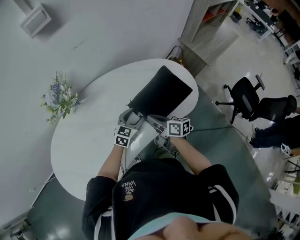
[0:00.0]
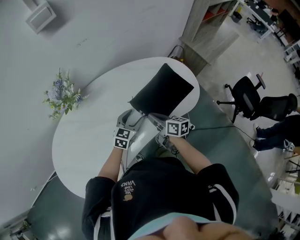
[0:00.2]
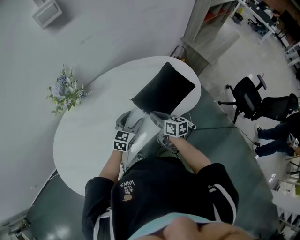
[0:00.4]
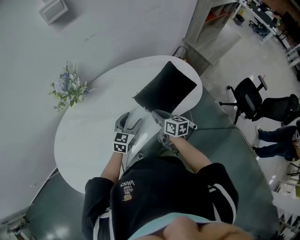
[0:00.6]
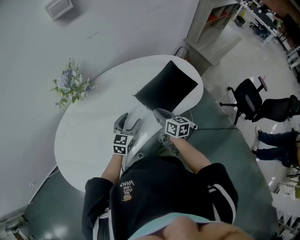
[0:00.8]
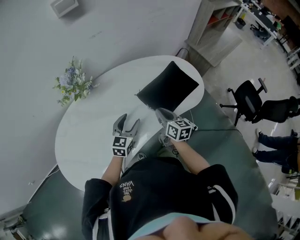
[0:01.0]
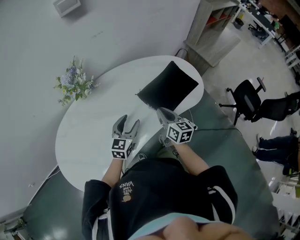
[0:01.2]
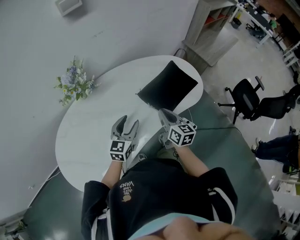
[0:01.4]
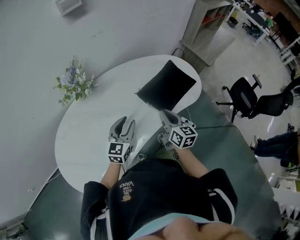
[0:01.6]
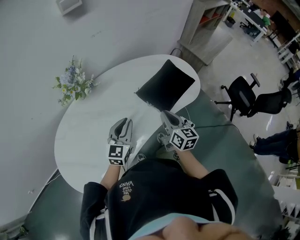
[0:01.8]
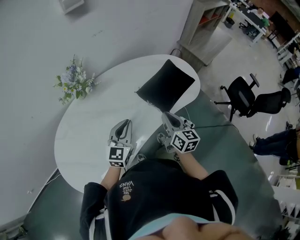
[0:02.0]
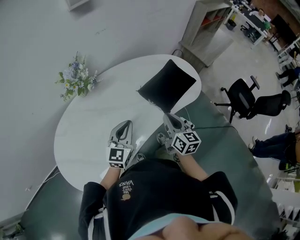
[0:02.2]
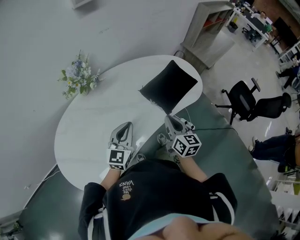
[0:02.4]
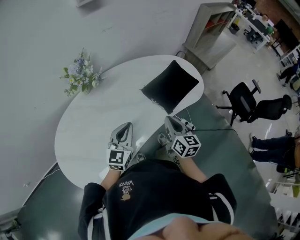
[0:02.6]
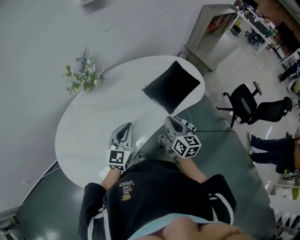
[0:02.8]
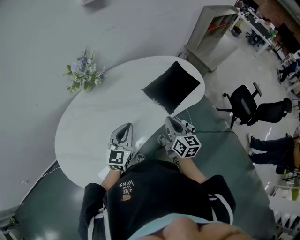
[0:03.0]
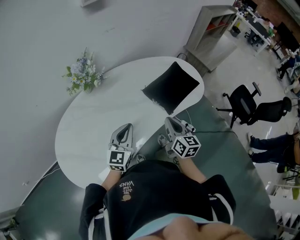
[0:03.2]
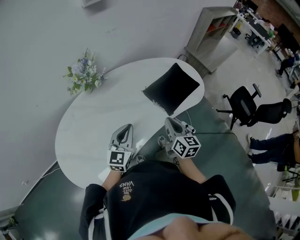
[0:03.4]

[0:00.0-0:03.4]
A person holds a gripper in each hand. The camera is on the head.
0:00.0 to 0:01.6: The left gripper shifts about 20 cm to the left, backward and upward. Meanwhile the right gripper heads backward and upward, covering approximately 10 cm, and turns by some 30 degrees.
0:01.6 to 0:03.4: The grippers both shift backward by approximately 5 cm. The left gripper closes.

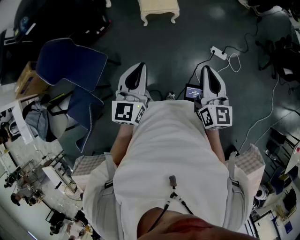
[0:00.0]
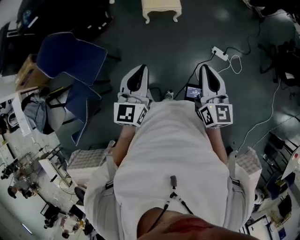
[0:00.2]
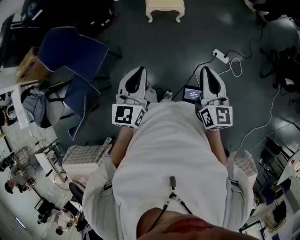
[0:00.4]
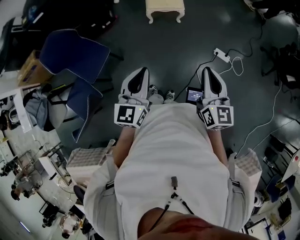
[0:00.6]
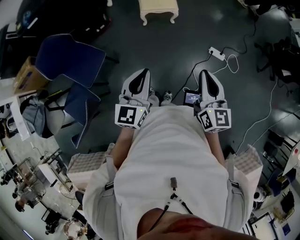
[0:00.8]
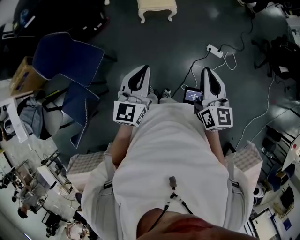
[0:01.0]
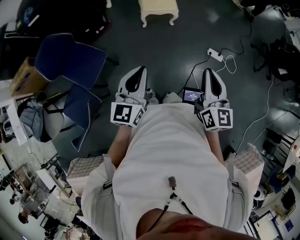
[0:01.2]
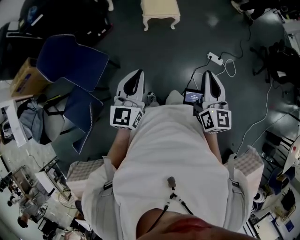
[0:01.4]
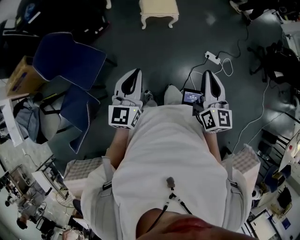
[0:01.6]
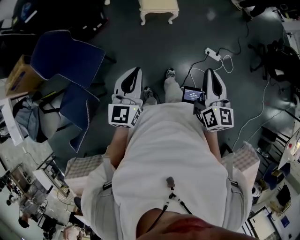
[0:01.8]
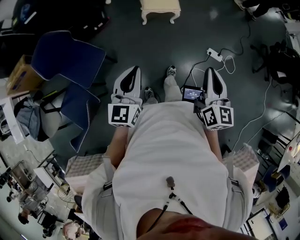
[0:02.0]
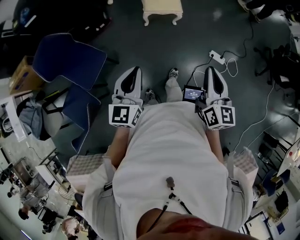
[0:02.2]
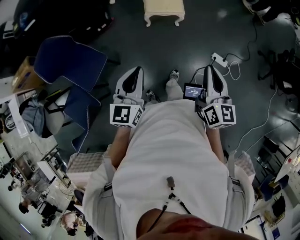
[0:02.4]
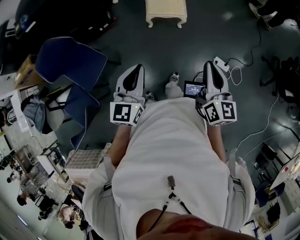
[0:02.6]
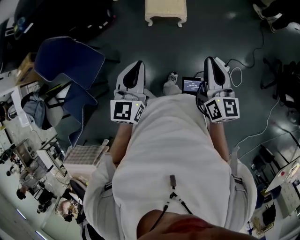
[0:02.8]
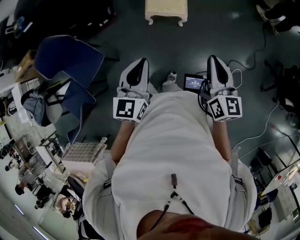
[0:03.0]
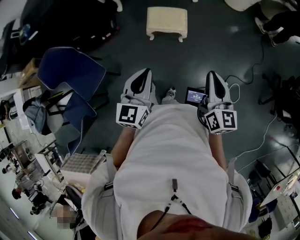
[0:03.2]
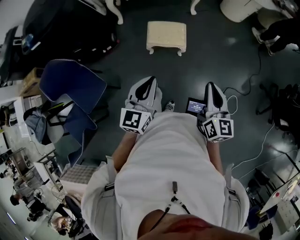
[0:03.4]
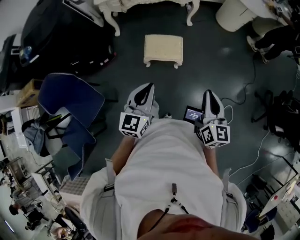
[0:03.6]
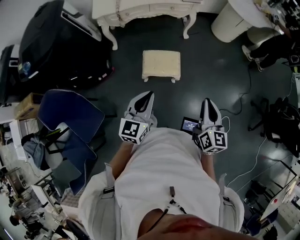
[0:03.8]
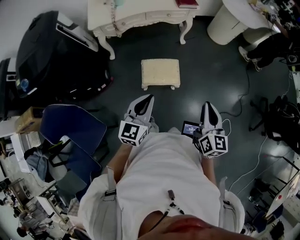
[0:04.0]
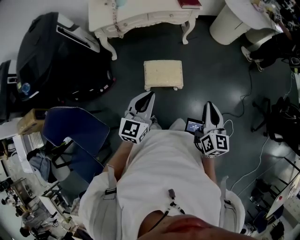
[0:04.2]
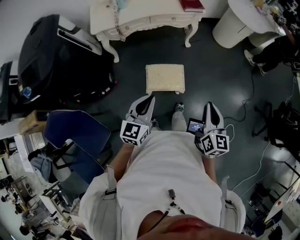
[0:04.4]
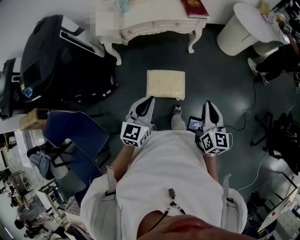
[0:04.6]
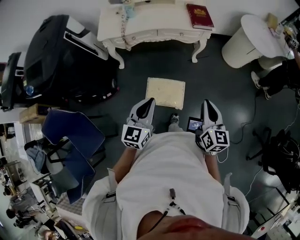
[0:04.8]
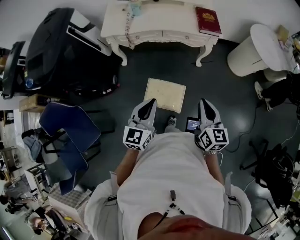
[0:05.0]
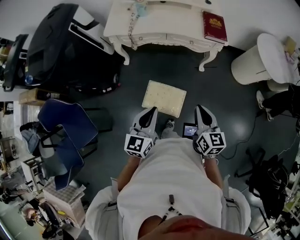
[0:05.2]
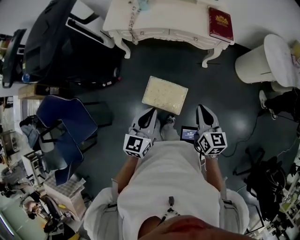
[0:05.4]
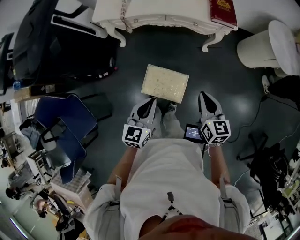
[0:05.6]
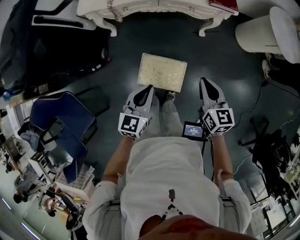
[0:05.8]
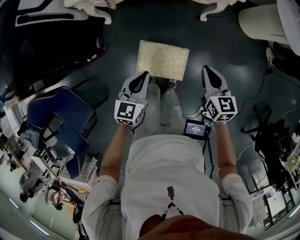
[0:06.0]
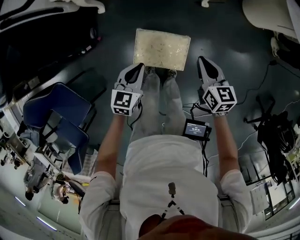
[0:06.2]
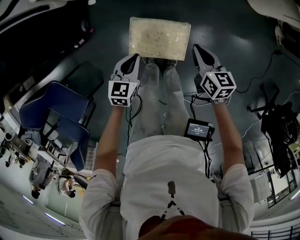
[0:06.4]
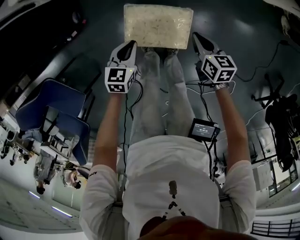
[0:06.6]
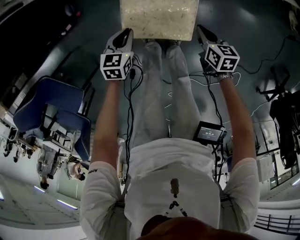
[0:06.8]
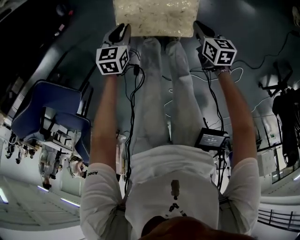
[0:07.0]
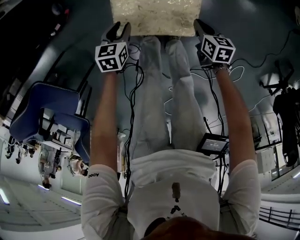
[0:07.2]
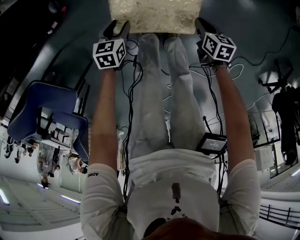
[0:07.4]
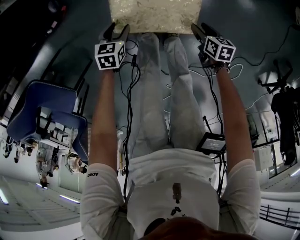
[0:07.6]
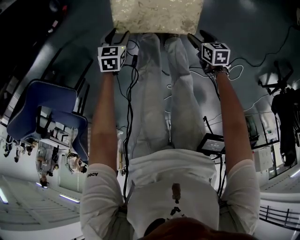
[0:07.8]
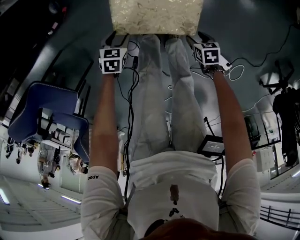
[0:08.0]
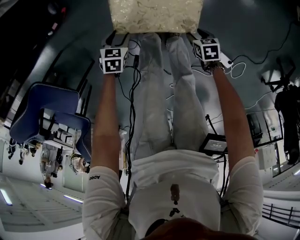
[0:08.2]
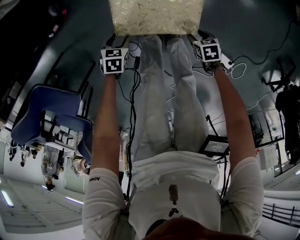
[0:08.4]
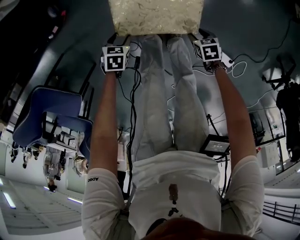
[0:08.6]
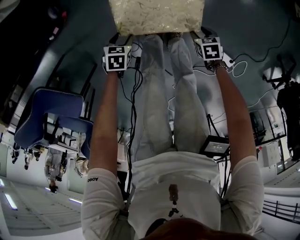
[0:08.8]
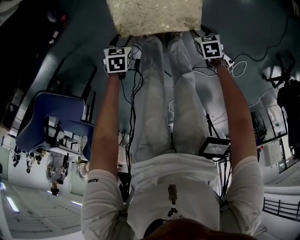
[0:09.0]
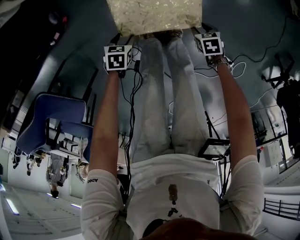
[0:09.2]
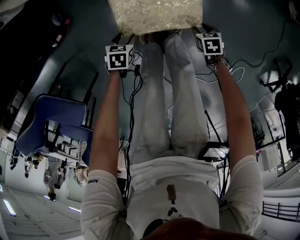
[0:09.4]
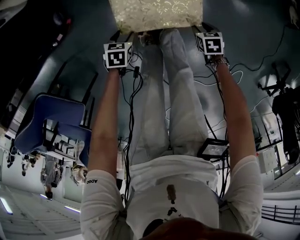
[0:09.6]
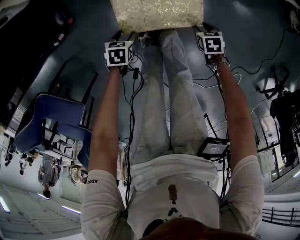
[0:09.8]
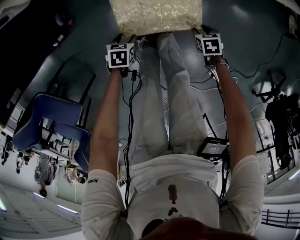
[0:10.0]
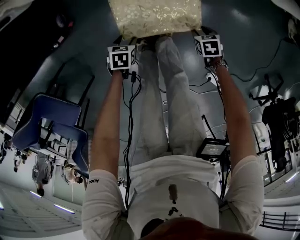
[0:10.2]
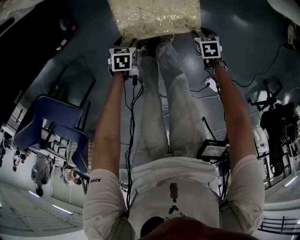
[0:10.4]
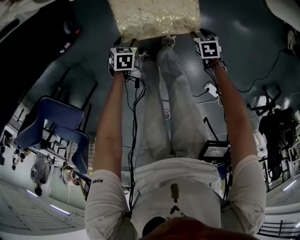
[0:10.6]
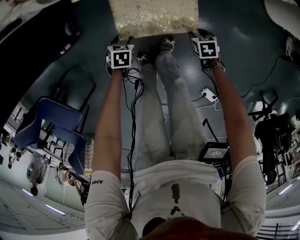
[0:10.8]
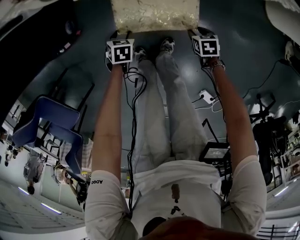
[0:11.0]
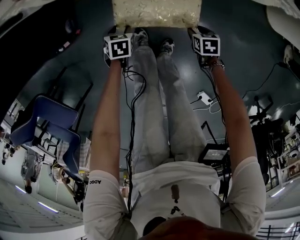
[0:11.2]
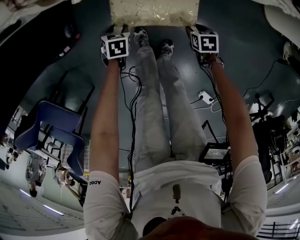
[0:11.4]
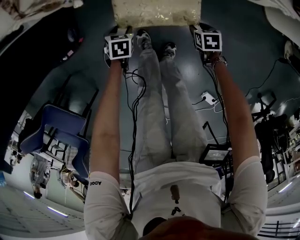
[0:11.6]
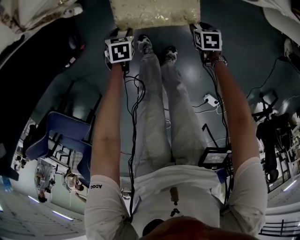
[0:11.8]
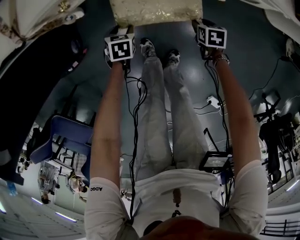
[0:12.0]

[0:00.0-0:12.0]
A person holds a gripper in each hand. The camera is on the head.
0:00.0 to 0:01.6: The right gripper travels backward by roughly 5 cm. Meanwhile the left gripper moves to the left and backward, about 10 cm.
0:01.6 to 0:03.0: The two grippers go some 30 cm forward and to the right.
0:03.0 to 0:04.4: The grippers both shift forward by about 30 cm.
0:04.4 to 0:06.0: The right gripper shifts by roughly 40 cm, and swivels some 30 degrees; the left gripper shifts by roughly 30 cm.
0:06.0 to 0:07.6: Both grippers travel together downward, about 50 cm. The right gripper rotates about 40 degrees, and opens up; the left gripper tilts its fingers some 30 degrees downward, and opens.
0:07.6 to 0:09.0: The right gripper rotates roughly 30 degrees. Meanwhile the left gripper shifts by about 5 cm.
0:09.0 to 0:10.4: The left gripper moves some 10 cm. The right gripper shifts by roughly 20 cm.
0:10.4 to 0:12.0: The right gripper shifts by approximately 25 cm; the left gripper moves roughly 25 cm.

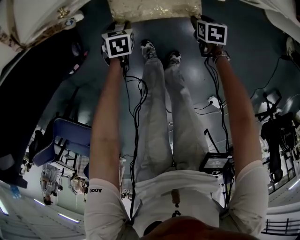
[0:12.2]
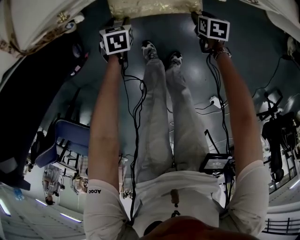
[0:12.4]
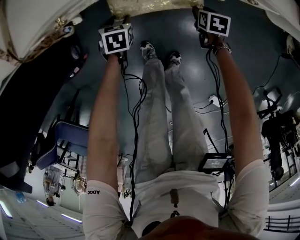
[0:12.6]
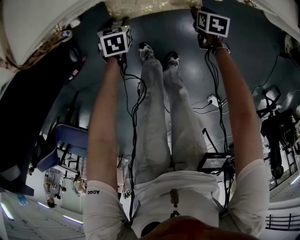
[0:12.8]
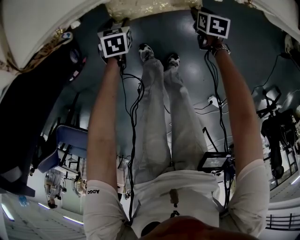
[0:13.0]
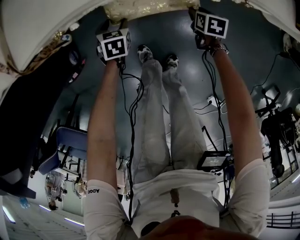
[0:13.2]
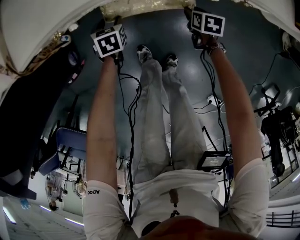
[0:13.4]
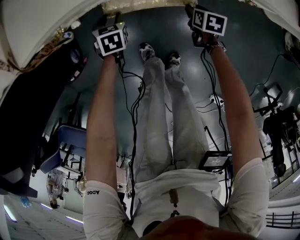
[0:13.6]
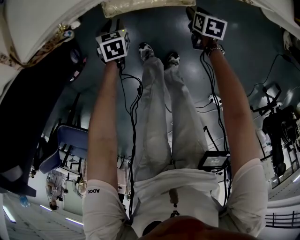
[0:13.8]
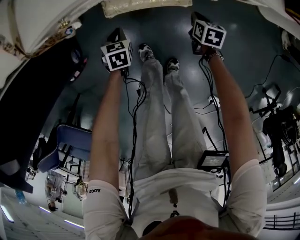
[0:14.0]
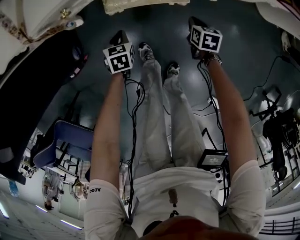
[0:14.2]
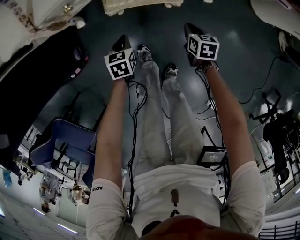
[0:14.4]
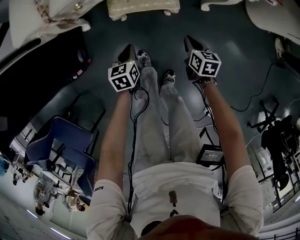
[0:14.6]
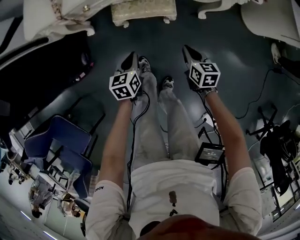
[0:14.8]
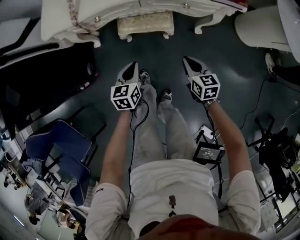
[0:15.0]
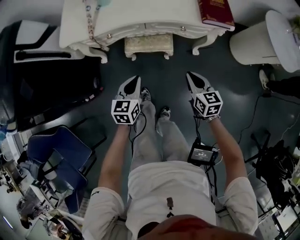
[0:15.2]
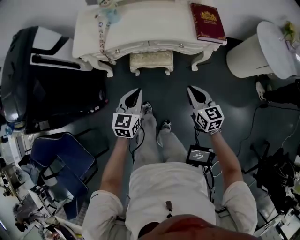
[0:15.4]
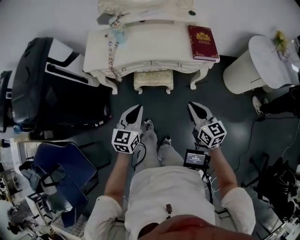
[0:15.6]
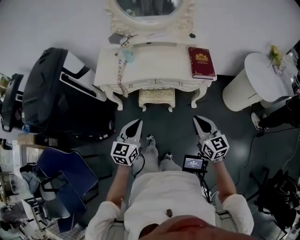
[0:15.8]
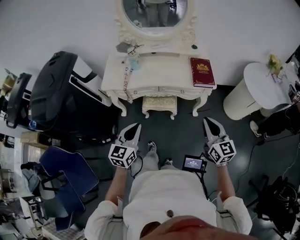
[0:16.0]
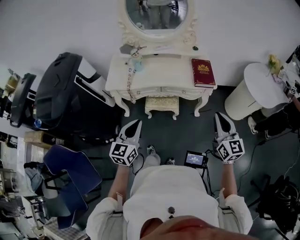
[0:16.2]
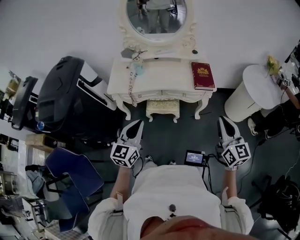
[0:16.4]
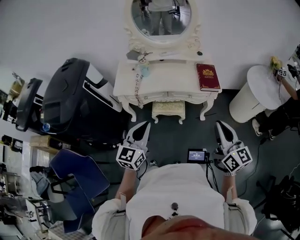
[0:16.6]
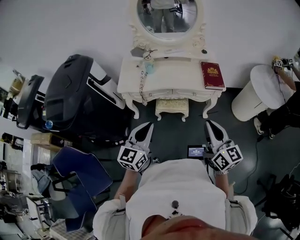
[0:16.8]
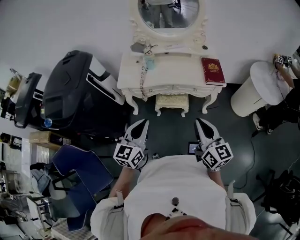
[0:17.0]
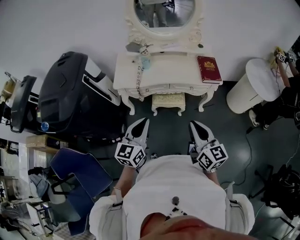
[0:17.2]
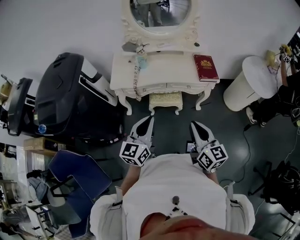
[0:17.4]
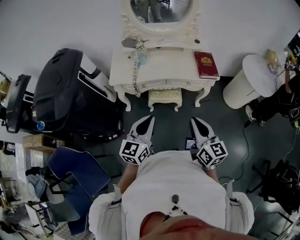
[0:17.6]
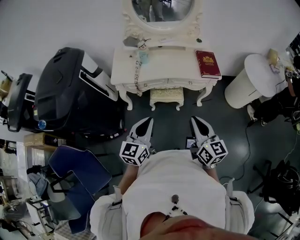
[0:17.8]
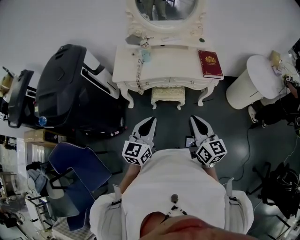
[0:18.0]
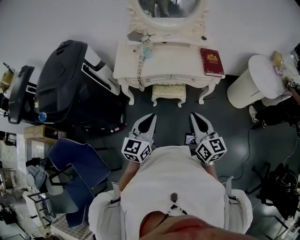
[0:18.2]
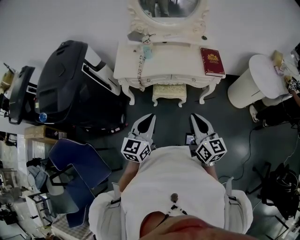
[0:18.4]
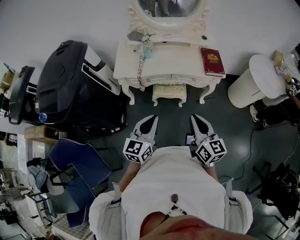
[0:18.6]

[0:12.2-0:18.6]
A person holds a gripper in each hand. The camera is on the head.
0:12.2 to 0:13.8: The right gripper is displaced forward by roughly 5 cm.
0:13.8 to 0:15.4: Both grippers travel together upward and backward, roughly 50 cm. The right gripper points its fingers some 40 degrees further upward, and closes. The left gripper tips its fingers upward by some 40 degrees, and closes.
0:15.4 to 0:17.0: Both grippers travel together upward and backward, about 35 cm. The right gripper turns by about 20 degrees.
0:17.0 to 0:18.6: The right gripper moves roughly 5 cm.

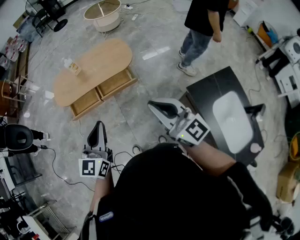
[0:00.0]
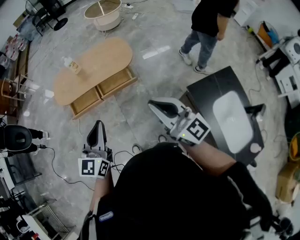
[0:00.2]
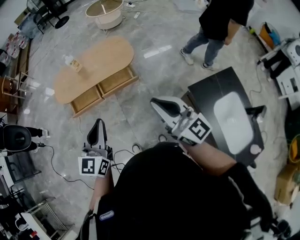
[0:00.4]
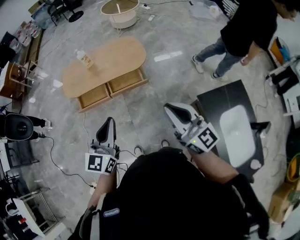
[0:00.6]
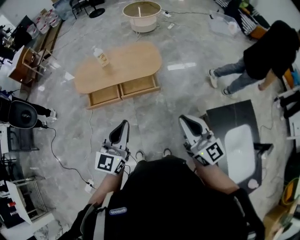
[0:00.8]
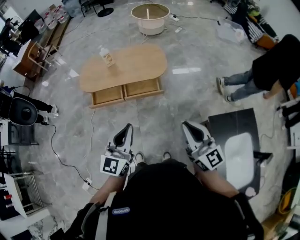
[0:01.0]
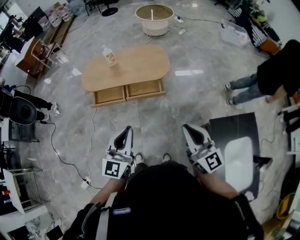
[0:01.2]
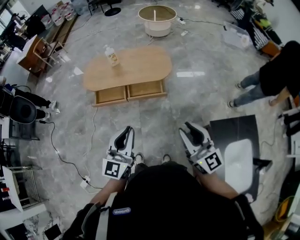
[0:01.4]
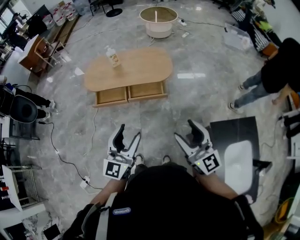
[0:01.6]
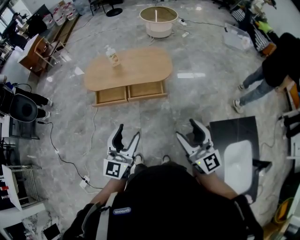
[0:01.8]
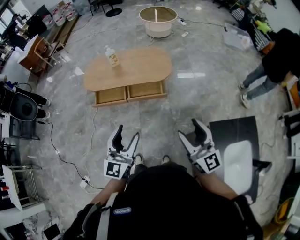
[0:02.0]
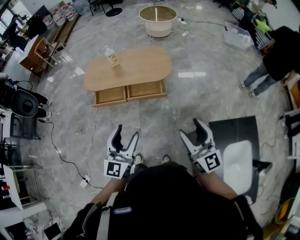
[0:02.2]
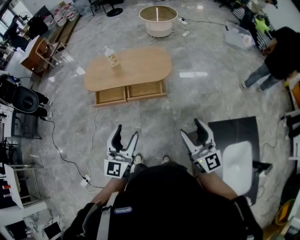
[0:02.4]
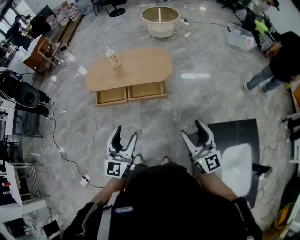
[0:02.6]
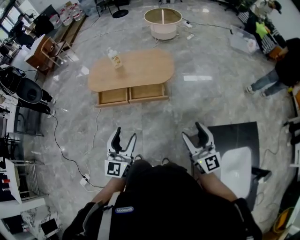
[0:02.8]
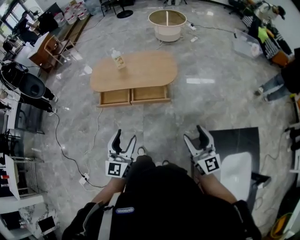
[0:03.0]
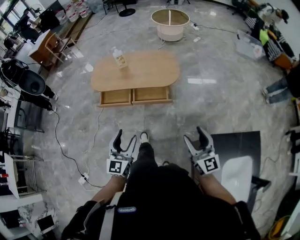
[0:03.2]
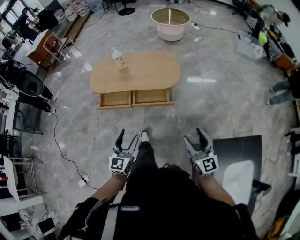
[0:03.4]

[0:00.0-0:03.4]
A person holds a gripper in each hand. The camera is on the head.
0:00.0 to 0:01.6: The right gripper opens, while the left gripper opens up.
0:01.6 to 0:03.4: The left gripper heads downward and forward, covering approximately 15 cm; the right gripper goes roughly 20 cm downward, to the right and forward.
